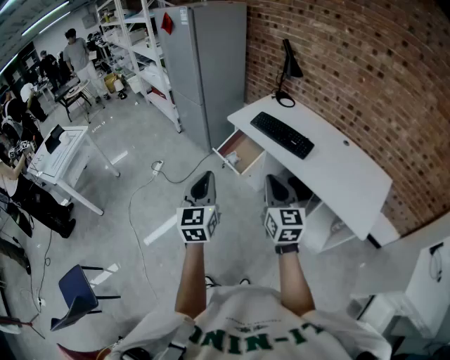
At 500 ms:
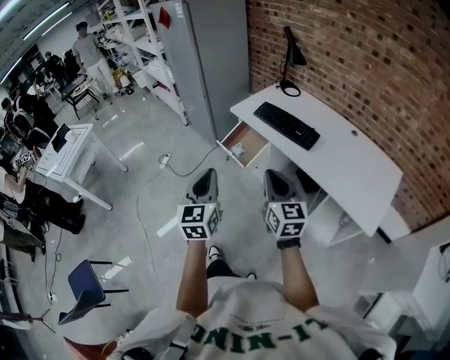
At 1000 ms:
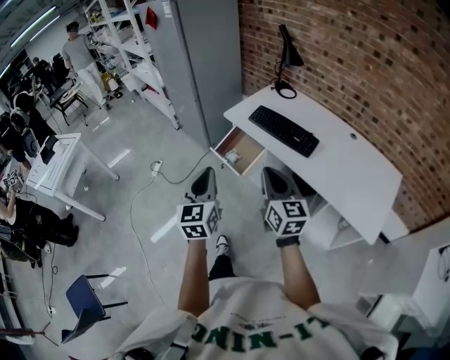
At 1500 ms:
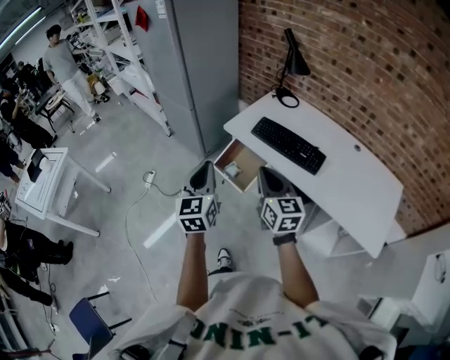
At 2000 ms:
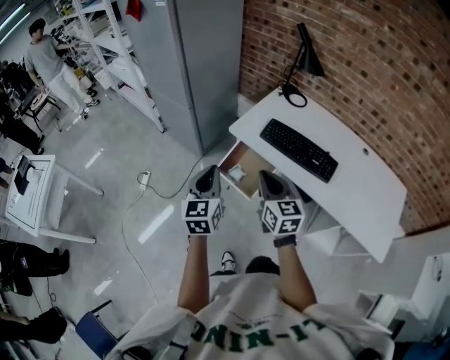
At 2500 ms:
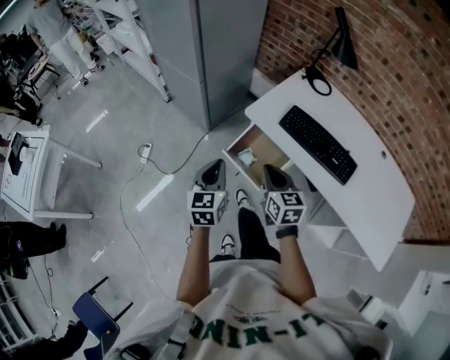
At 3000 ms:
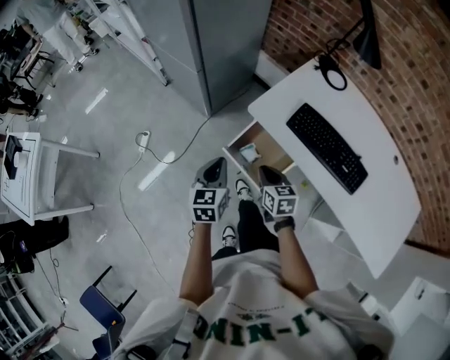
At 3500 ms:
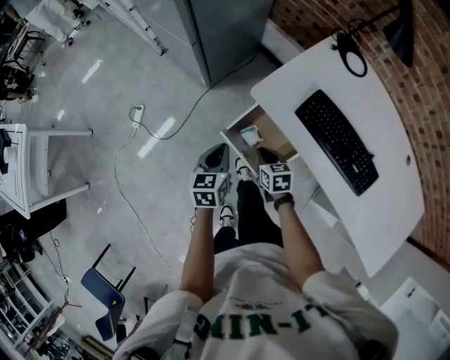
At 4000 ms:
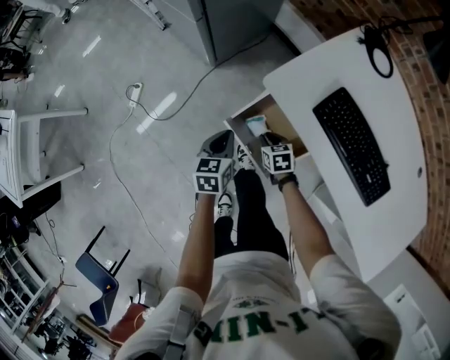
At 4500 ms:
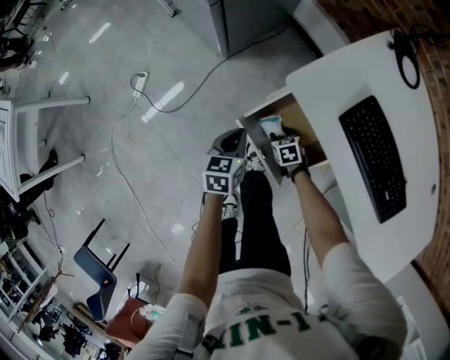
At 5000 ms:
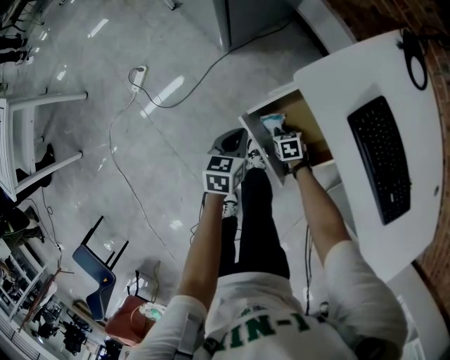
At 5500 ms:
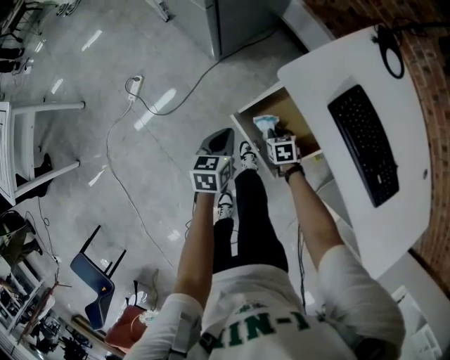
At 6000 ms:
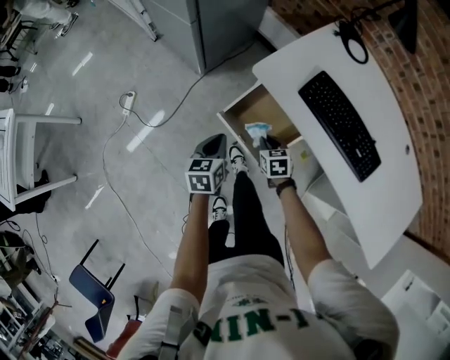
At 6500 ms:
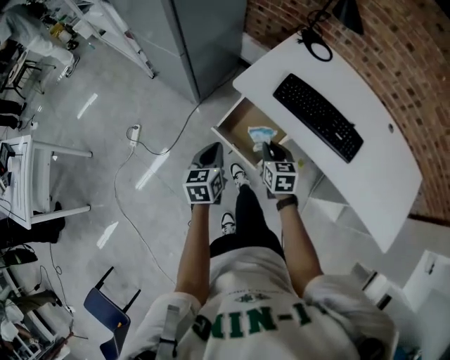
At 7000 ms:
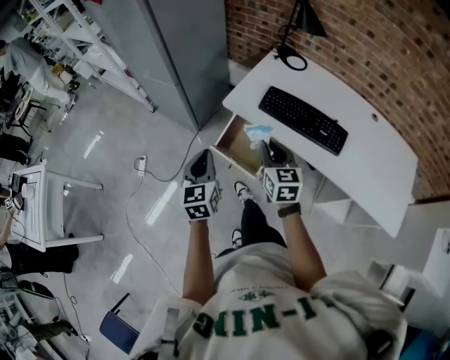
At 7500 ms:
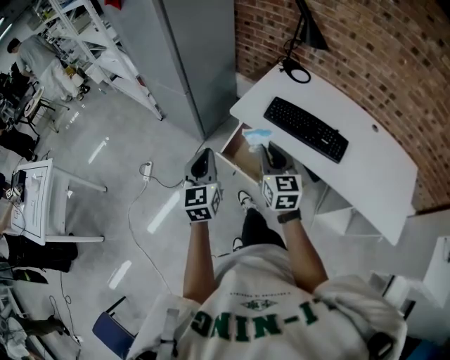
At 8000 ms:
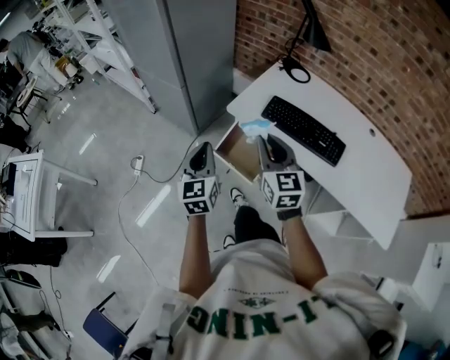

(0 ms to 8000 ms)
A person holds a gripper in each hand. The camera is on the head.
0 ms - 2000 ms: The two grippers go roughly 35 cm forward.
2000 ms - 4000 ms: Both grippers travel together downward and forward, approximately 50 cm. The left gripper changes its angle by approximately 30 degrees, while the right gripper tips its fingers downward by about 50 degrees.
4000 ms - 6000 ms: The grippers both shift backward by about 5 cm. The right gripper travels downward and back again, some 15 cm each way, and opens, then closes again. The left gripper goes downward and returns, approximately 10 cm each way.
6000 ms - 8000 ms: The grippers both shift upward by some 35 cm. The left gripper turns by about 30 degrees. Meanwhile the right gripper points its fingers roughly 50 degrees further upward.

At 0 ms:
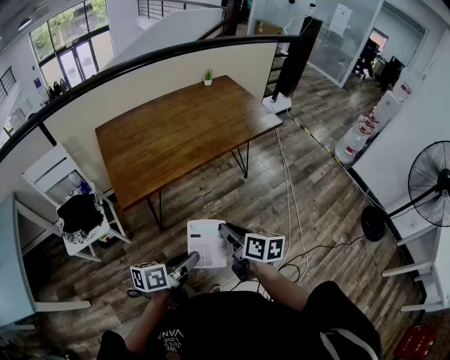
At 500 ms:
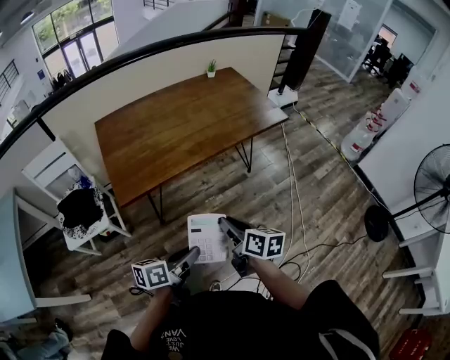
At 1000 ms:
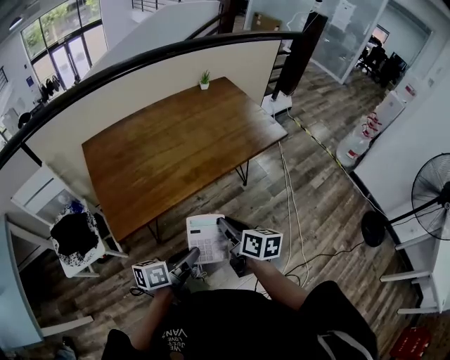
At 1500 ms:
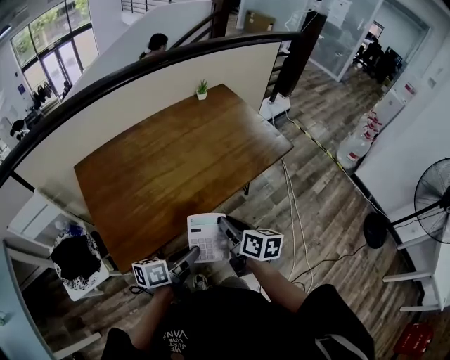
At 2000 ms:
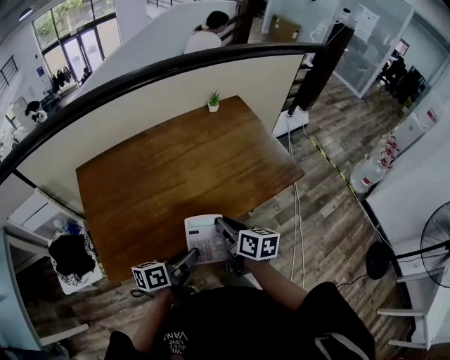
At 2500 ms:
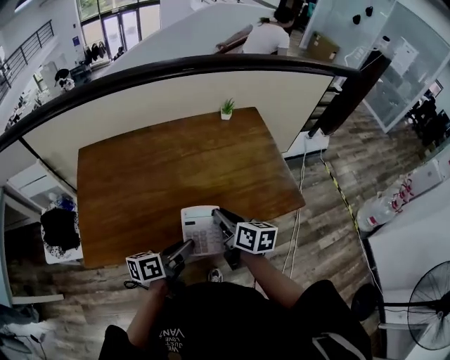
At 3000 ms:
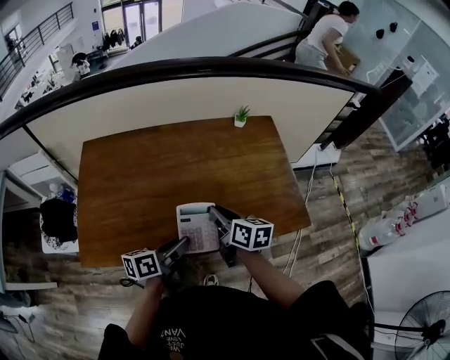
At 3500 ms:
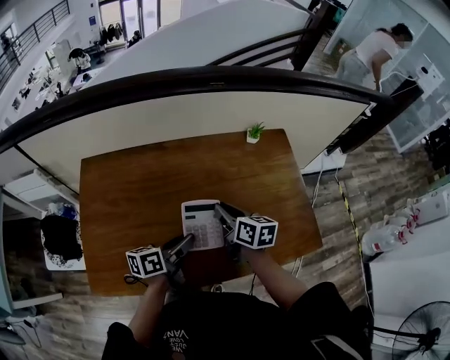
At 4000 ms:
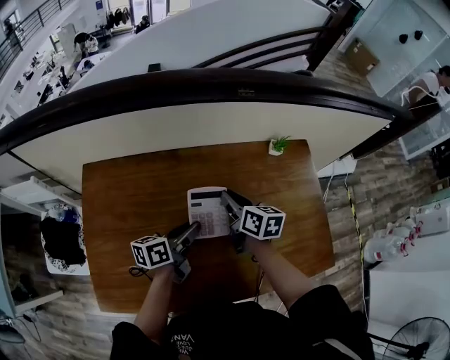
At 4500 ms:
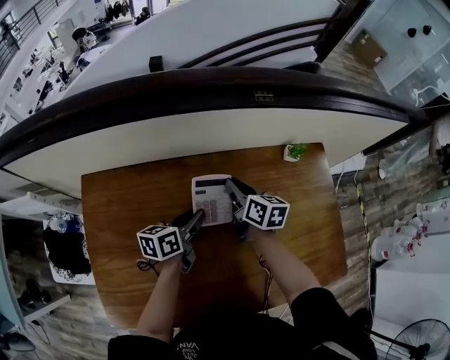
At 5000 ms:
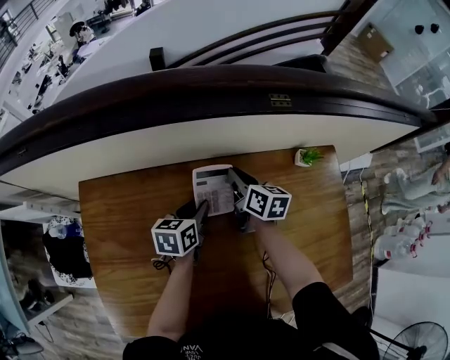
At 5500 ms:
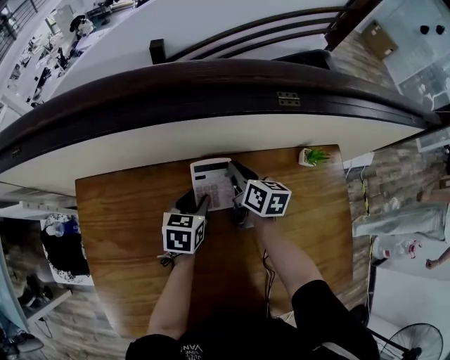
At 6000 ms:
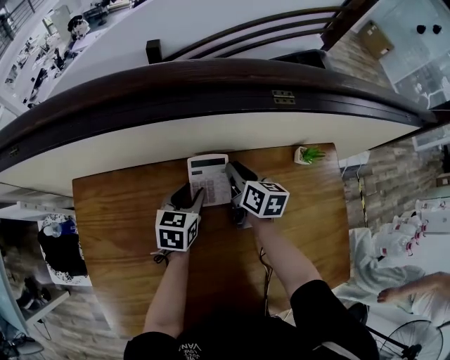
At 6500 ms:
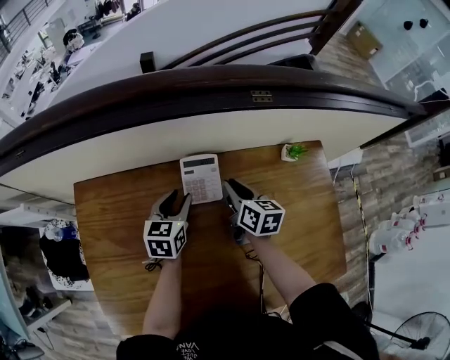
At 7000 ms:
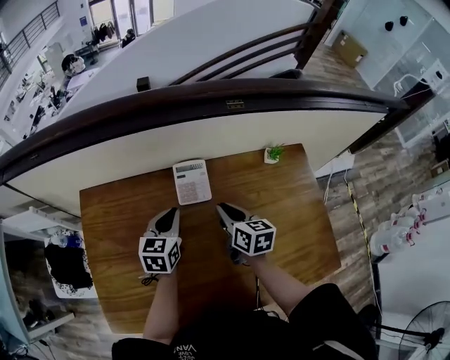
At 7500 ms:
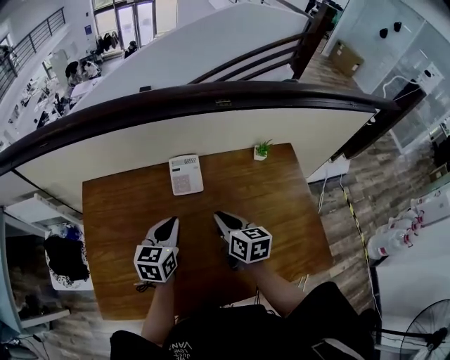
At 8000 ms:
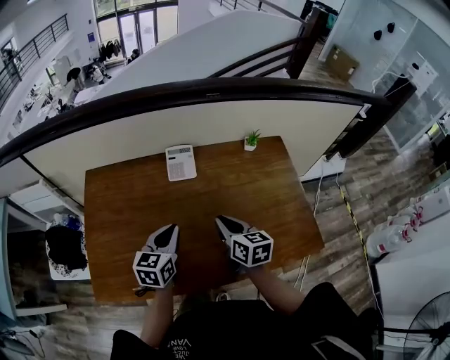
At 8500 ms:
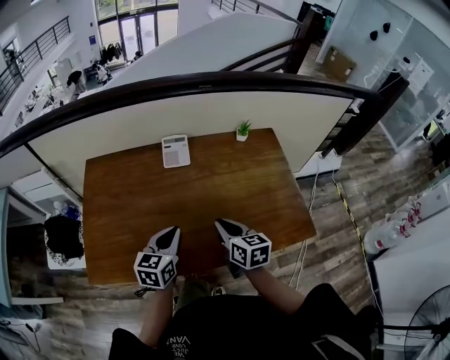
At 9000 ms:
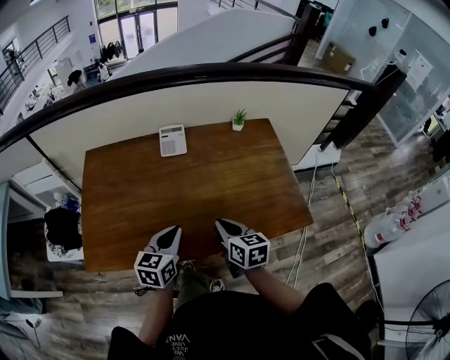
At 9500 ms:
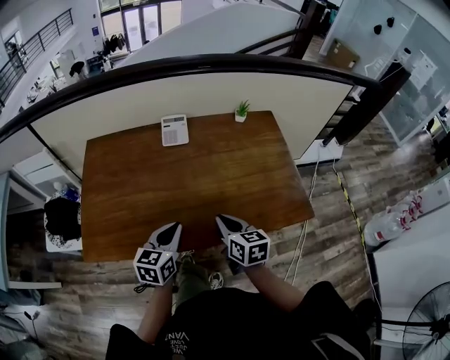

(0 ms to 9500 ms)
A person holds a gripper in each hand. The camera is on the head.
0 ms - 2000 ms: Both grippers move forward, roughly 40 cm.
2000 ms - 4000 ms: The grippers both shift forward by about 35 cm.
4000 ms - 5500 ms: The two grippers go approximately 20 cm forward and downward. The left gripper rotates some 40 degrees.
5500 ms - 7500 ms: Both grippers travel together backward and upward, approximately 25 cm. The left gripper closes its fingers.
7500 ms - 9500 ms: Both grippers travel together backward, some 25 cm.

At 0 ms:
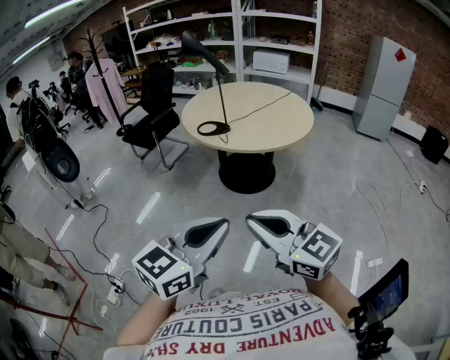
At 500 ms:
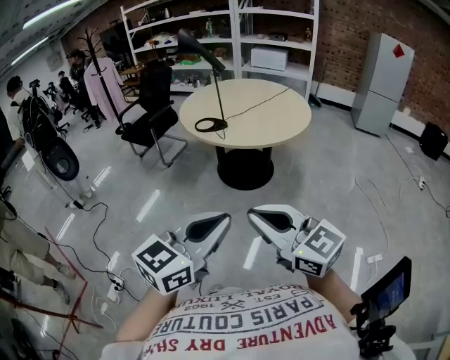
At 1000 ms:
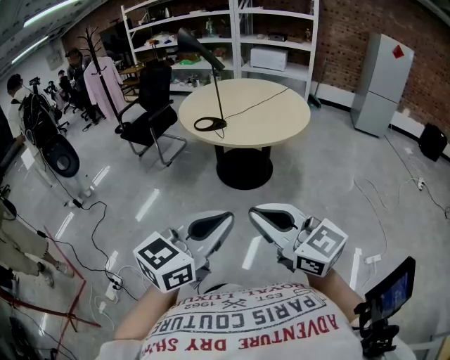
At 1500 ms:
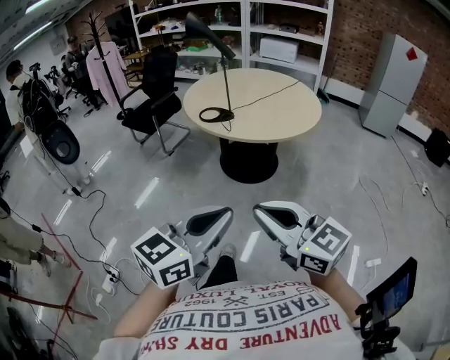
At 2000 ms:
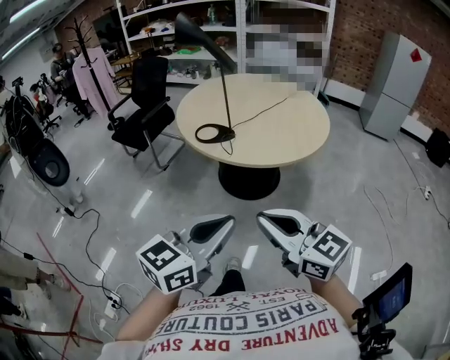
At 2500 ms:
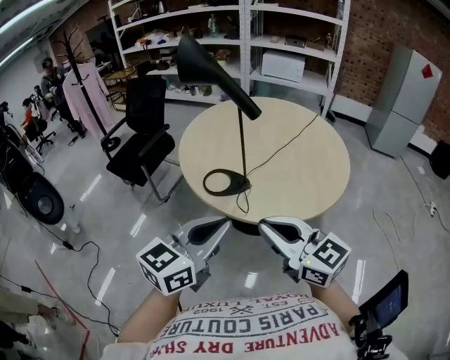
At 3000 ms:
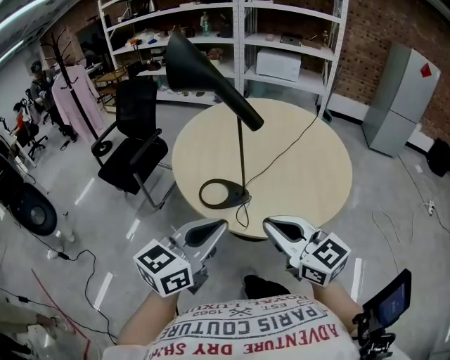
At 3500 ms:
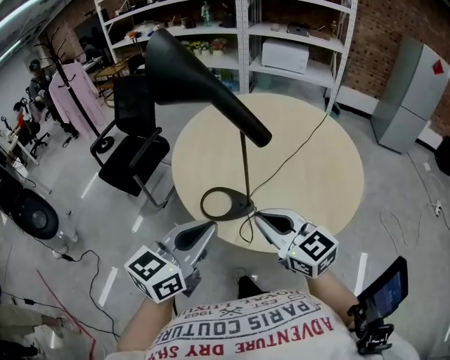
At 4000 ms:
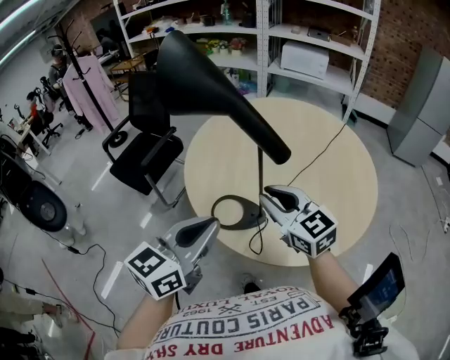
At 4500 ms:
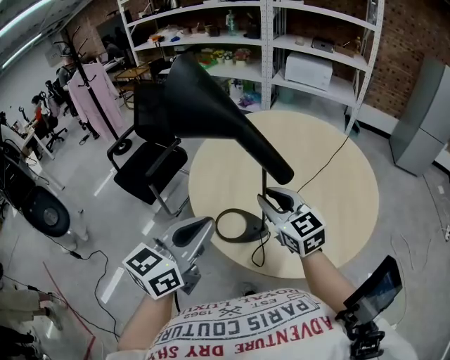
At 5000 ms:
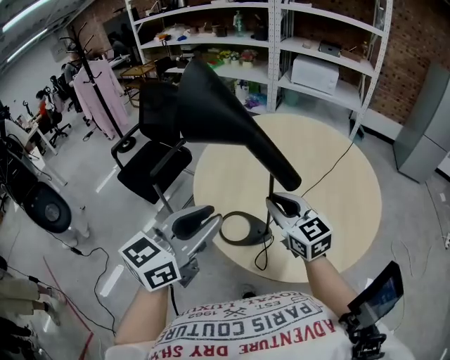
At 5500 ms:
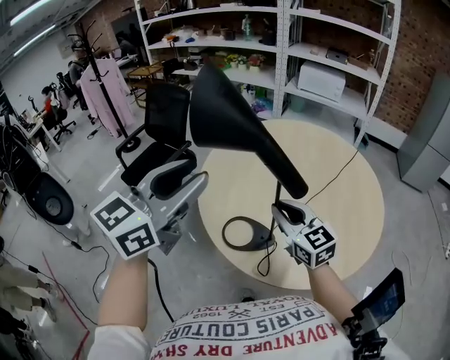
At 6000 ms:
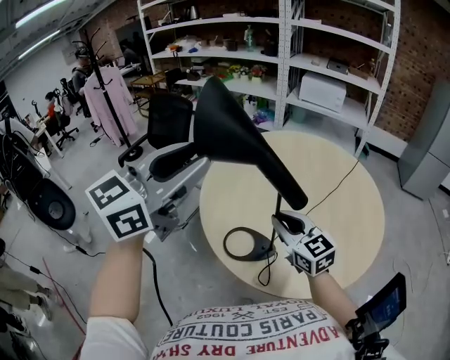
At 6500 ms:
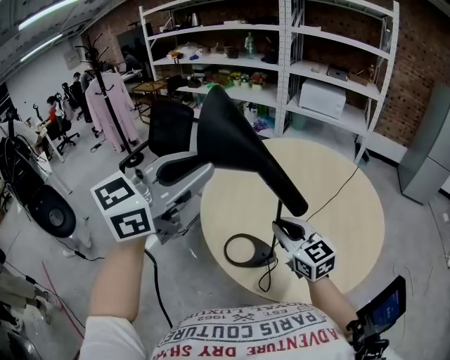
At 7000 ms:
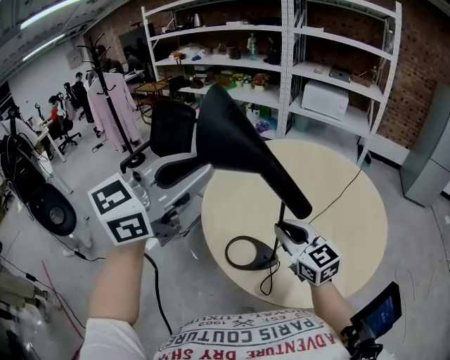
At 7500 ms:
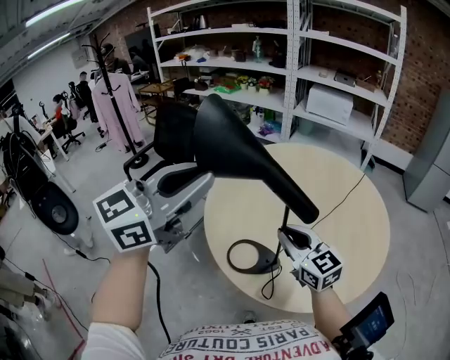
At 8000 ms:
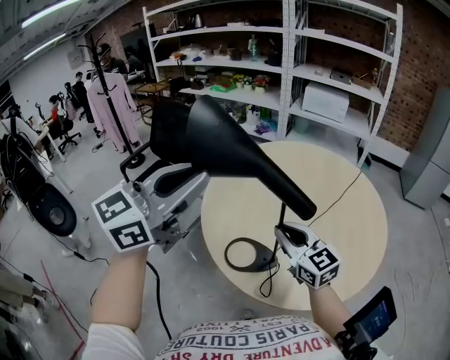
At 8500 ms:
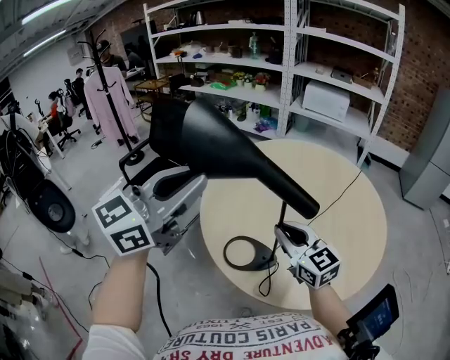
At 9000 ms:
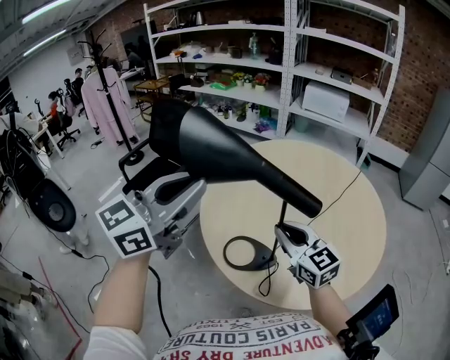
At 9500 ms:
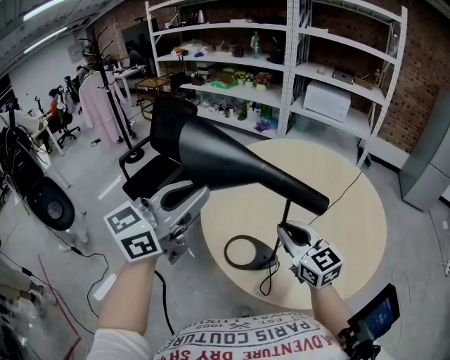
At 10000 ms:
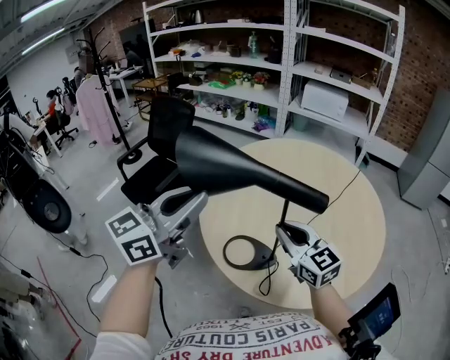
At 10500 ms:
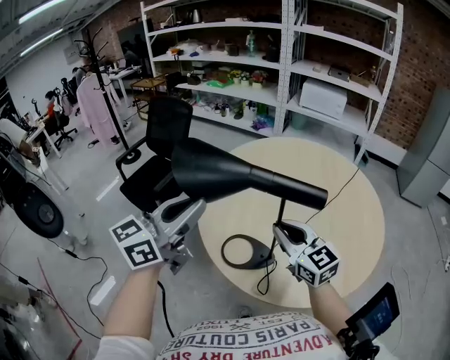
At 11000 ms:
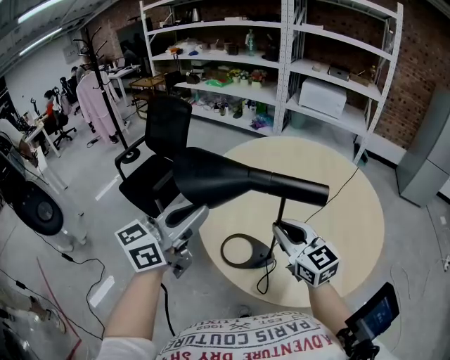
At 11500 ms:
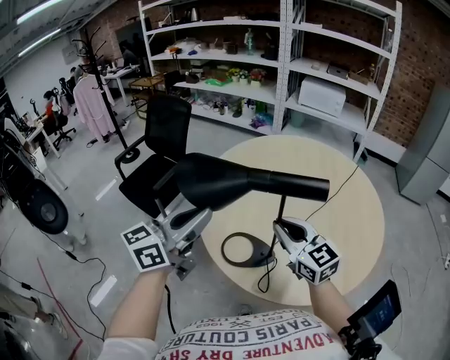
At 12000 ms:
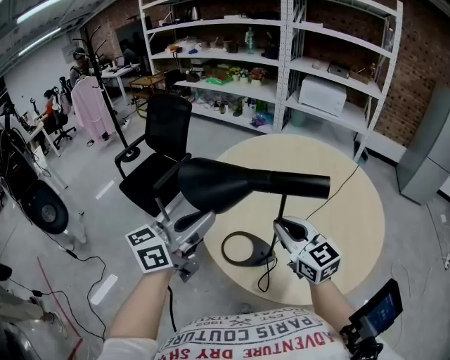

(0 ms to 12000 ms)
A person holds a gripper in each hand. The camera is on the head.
0 ms - 2000 ms: The two grippers go some 20 cm forward.
2000 ms - 4000 ms: Both grippers are carried forward, about 50 cm.
4000 ms - 6000 ms: The right gripper shifts by approximately 5 cm, while the left gripper shifts approximately 20 cm upward and forward, rotates some 20 degrees, and opens its fingers.
6000 ms - 8000 ms: The left gripper closes its fingers.
8000 ms - 10000 ms: The left gripper moves downward, roughly 10 cm.
10000 ms - 12000 ms: The left gripper travels downward by approximately 10 cm.
